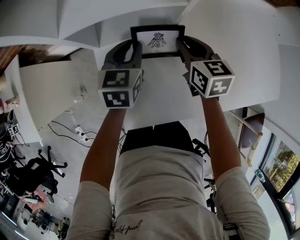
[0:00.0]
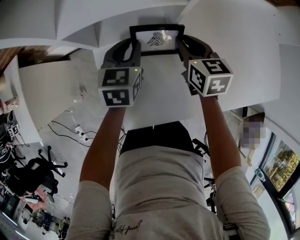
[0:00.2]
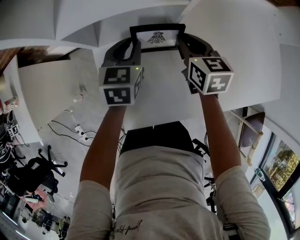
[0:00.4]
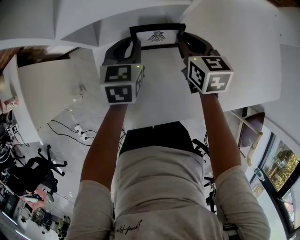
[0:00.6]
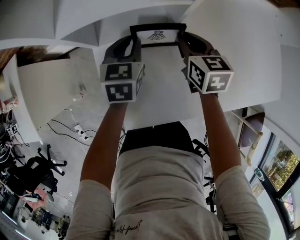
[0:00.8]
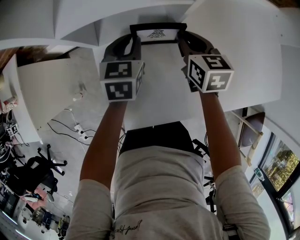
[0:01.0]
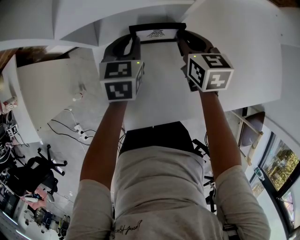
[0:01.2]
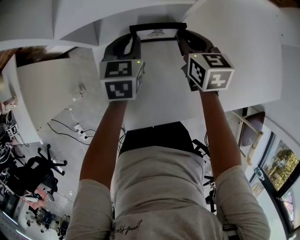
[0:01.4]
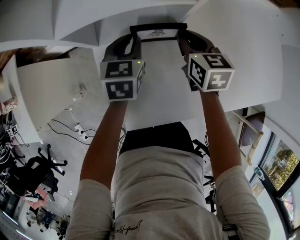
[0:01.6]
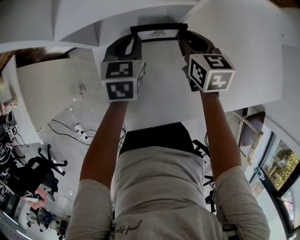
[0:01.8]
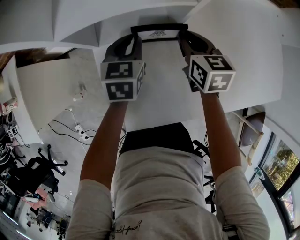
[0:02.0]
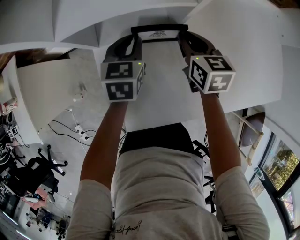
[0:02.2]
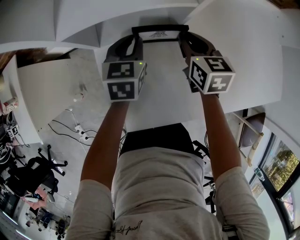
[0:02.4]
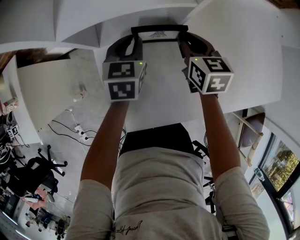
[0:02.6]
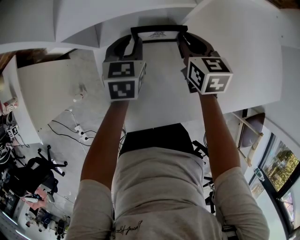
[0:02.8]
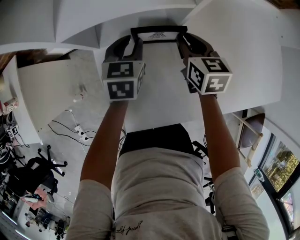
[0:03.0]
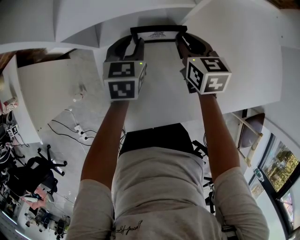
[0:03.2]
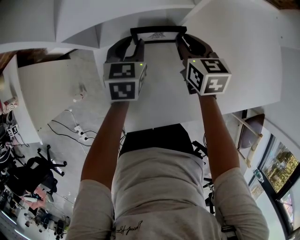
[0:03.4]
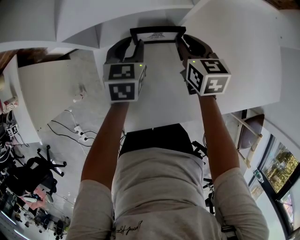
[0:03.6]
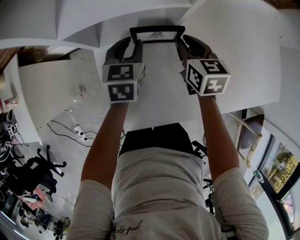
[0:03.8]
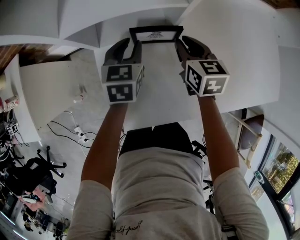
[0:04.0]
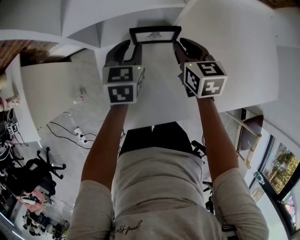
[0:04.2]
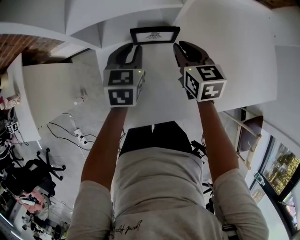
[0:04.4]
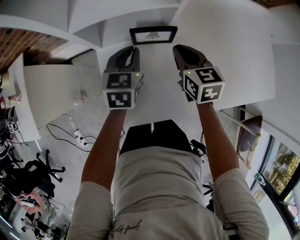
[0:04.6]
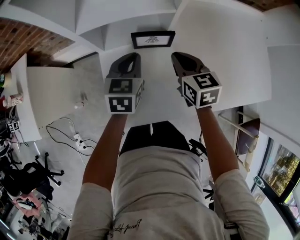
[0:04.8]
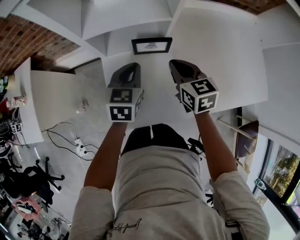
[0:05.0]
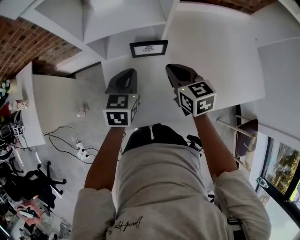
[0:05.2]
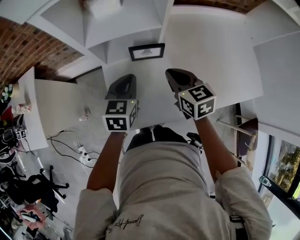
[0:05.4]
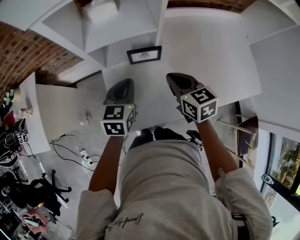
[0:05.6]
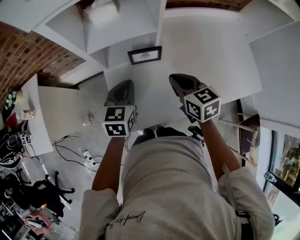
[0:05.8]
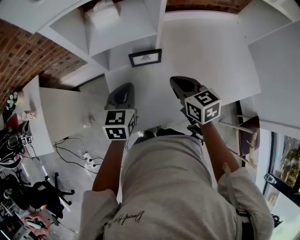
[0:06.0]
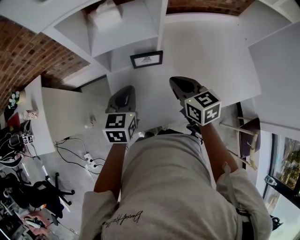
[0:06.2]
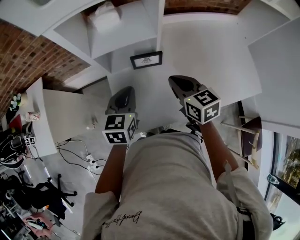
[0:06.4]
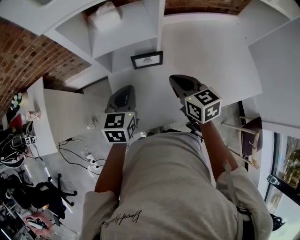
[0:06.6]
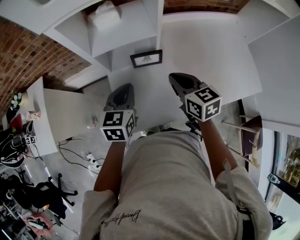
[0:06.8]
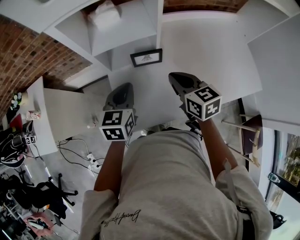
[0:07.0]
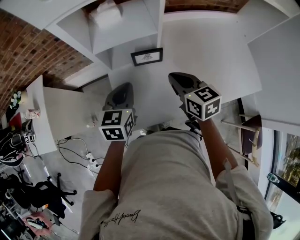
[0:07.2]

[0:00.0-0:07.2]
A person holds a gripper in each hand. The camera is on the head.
0:00.0 to 0:01.4: The grippers make only small movements.
0:01.4 to 0:02.8: The two grippers keep their place.
0:02.8 to 0:04.4: There are only small adjustments of the grippers.
0:04.4 to 0:05.8: The right gripper goes about 15 cm backward and upward. Meanwhile the left gripper travels upward and backward by approximately 15 cm.
0:05.8 to 0:07.2: The grippers stay close to where they were, moving slightly.

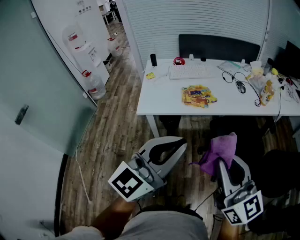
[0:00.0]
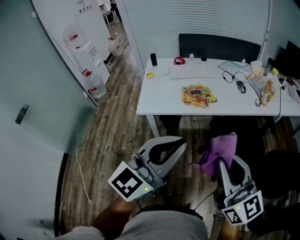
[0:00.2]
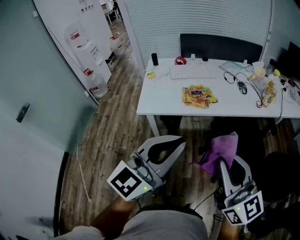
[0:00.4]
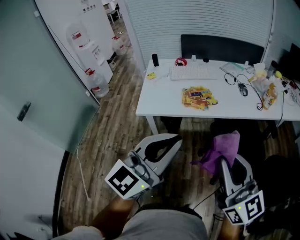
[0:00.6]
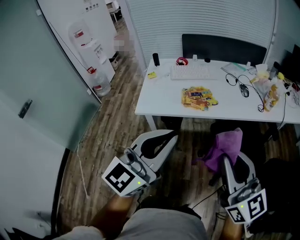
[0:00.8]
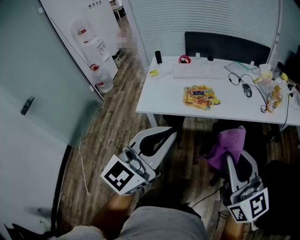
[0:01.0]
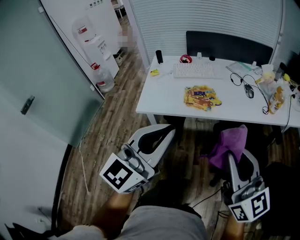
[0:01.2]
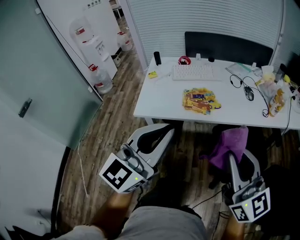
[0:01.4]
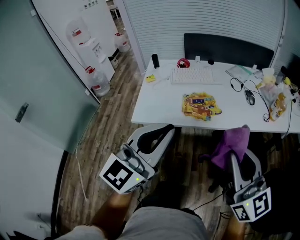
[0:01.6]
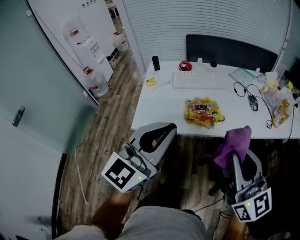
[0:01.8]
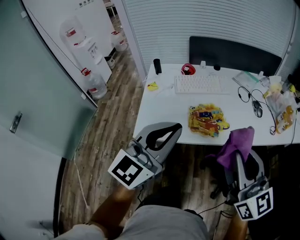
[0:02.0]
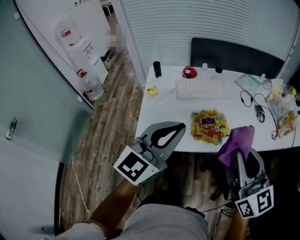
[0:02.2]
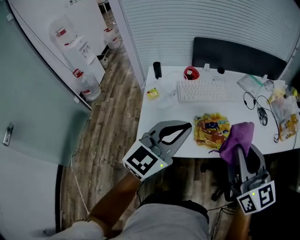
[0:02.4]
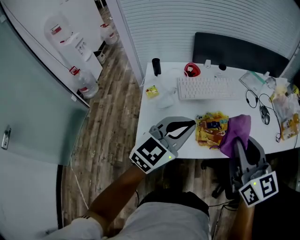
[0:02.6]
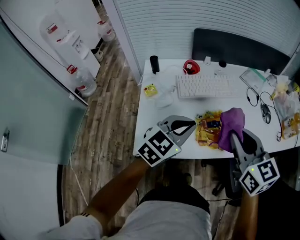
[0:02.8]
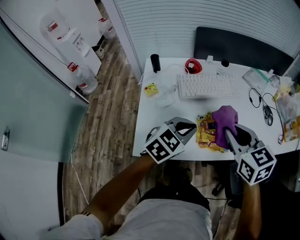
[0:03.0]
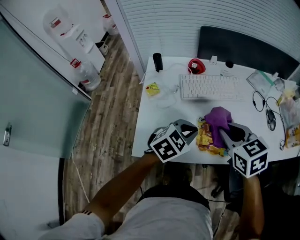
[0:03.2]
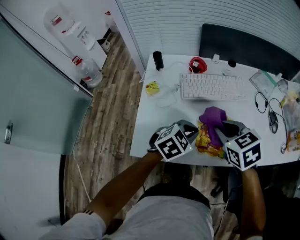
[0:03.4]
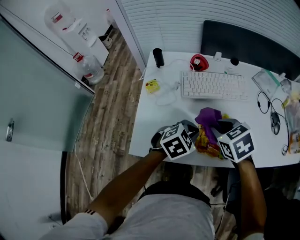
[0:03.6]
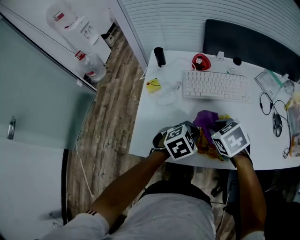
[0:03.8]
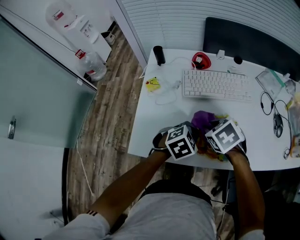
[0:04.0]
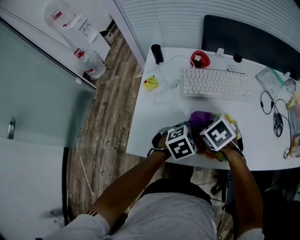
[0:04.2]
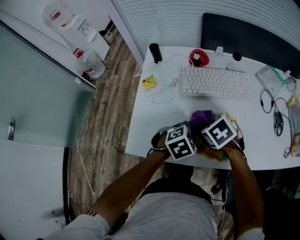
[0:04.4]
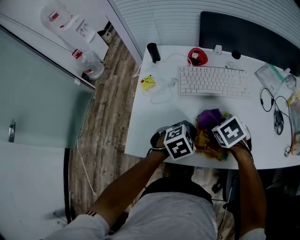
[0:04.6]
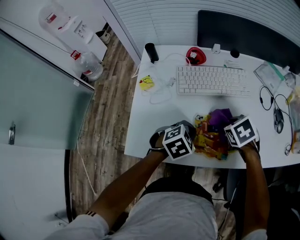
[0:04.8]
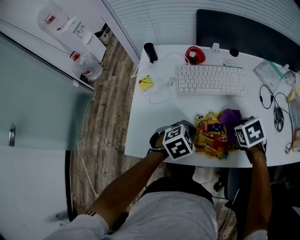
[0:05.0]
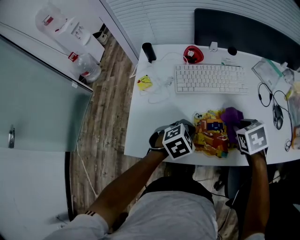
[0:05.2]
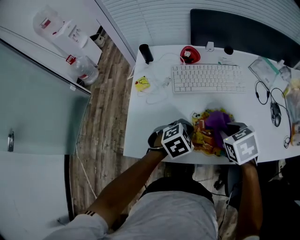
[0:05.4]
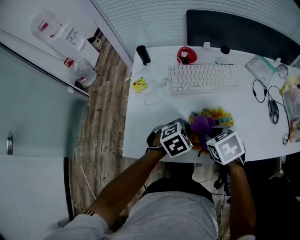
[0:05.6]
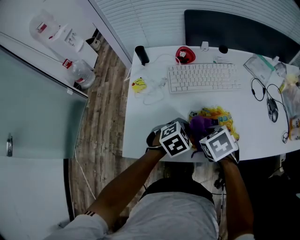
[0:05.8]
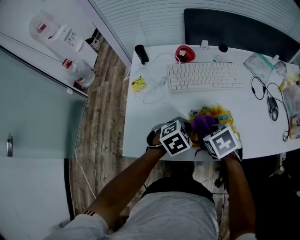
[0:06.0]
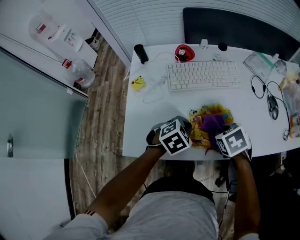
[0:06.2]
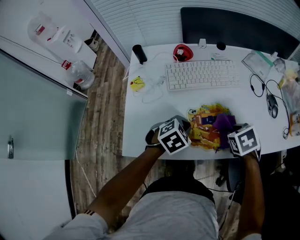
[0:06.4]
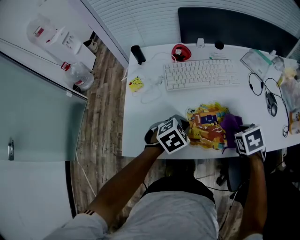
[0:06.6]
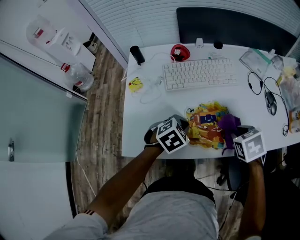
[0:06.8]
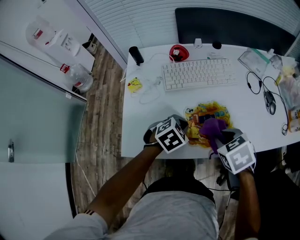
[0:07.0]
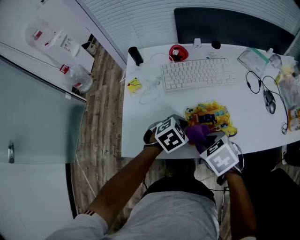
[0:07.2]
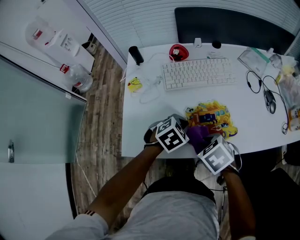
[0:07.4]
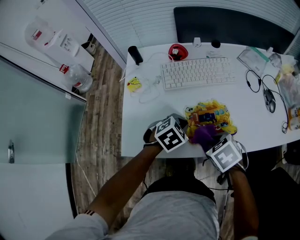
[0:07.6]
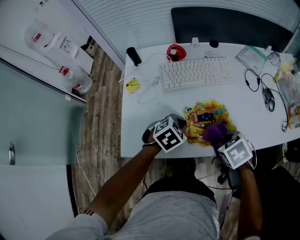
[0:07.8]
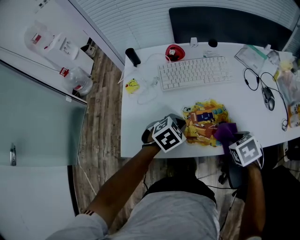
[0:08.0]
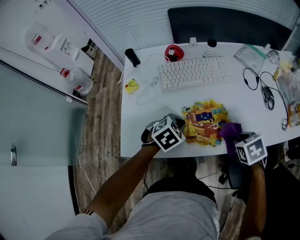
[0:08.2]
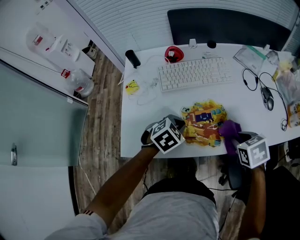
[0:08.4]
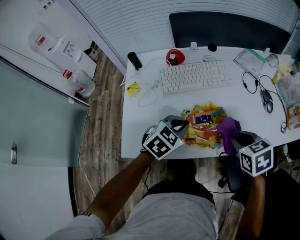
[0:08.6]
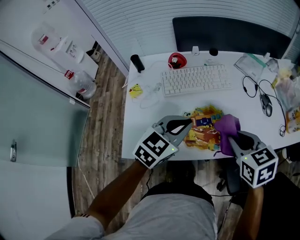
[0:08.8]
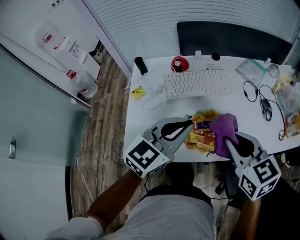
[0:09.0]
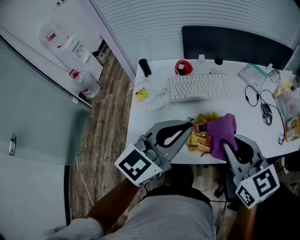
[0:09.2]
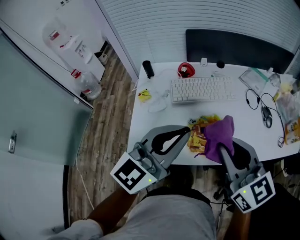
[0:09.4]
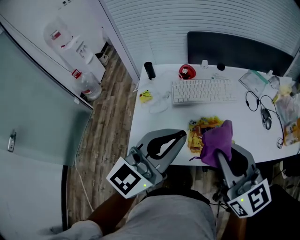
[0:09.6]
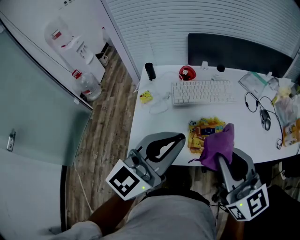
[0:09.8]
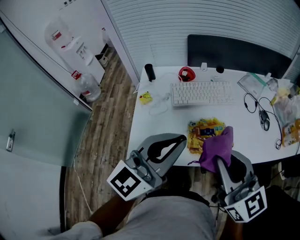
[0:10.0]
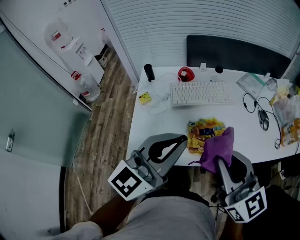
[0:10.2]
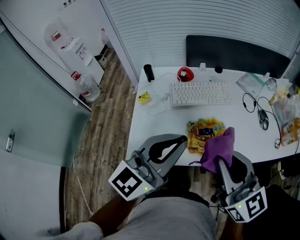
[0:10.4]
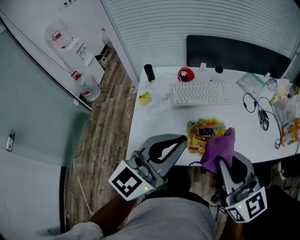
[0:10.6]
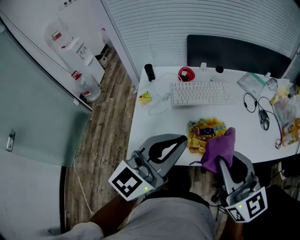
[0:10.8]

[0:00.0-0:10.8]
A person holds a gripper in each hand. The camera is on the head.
0:00.0 to 0:01.6: The two grippers go approximately 15 cm forward.
0:01.6 to 0:03.0: The right gripper is displaced forward and to the left by some 35 cm, and points its fingers approximately 40 degrees further downward. The left gripper goes about 35 cm forward and downward, and tips its fingers downward by roughly 40 degrees.
0:03.0 to 0:04.6: The left gripper shifts some 15 cm downward, and changes its angle by roughly 30 degrees; the right gripper travels downward and forward by approximately 20 cm, and tips its fingers downward by approximately 40 degrees.
0:04.6 to 0:06.2: The right gripper swings left and right, some 10 cm each way, with 2 reversals.
0:06.2 to 0:07.8: The right gripper moves left and right over roughly 15 cm, changing direction 2 times.
0:07.8 to 0:09.2: The grippers both shift upward by roughly 25 cm. The left gripper angles its fingers upward, by some 60 degrees; the right gripper points its fingers about 50 degrees further upward.
0:09.2 to 0:10.8: Both grippers move backward, some 5 cm.

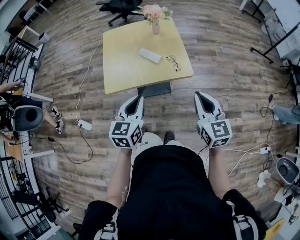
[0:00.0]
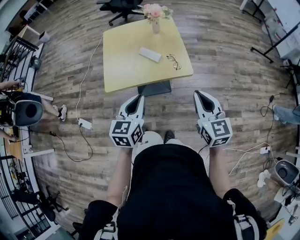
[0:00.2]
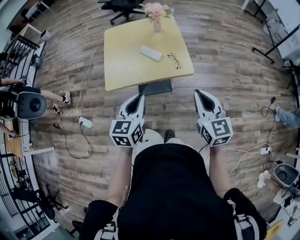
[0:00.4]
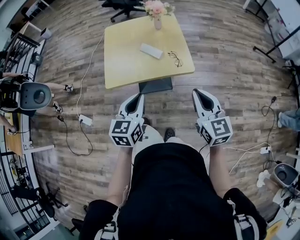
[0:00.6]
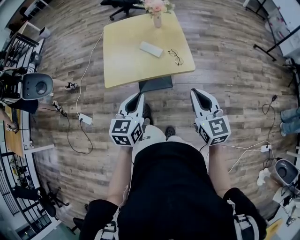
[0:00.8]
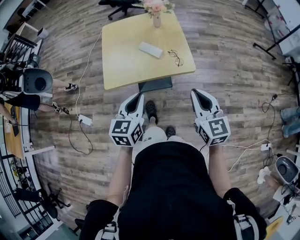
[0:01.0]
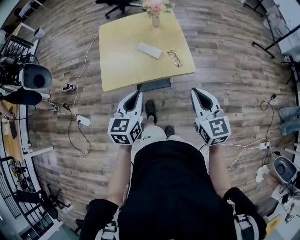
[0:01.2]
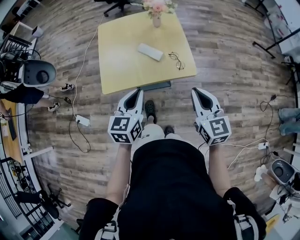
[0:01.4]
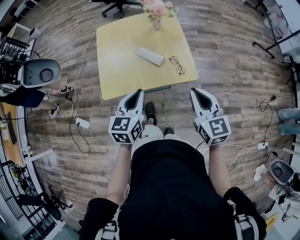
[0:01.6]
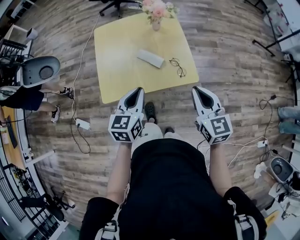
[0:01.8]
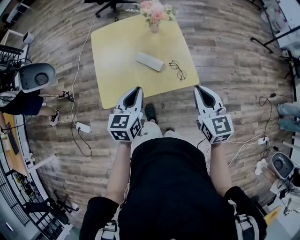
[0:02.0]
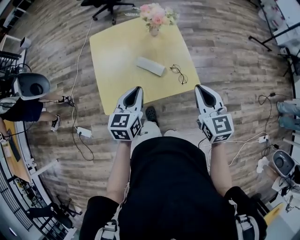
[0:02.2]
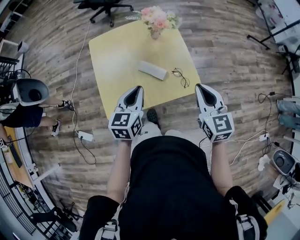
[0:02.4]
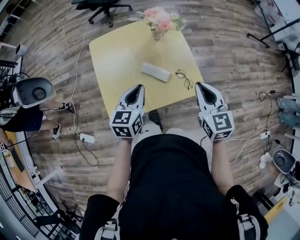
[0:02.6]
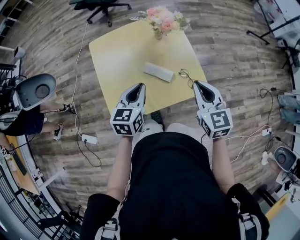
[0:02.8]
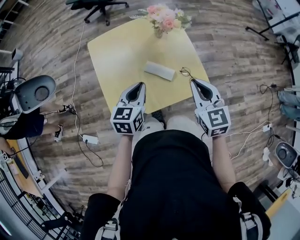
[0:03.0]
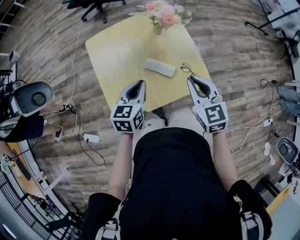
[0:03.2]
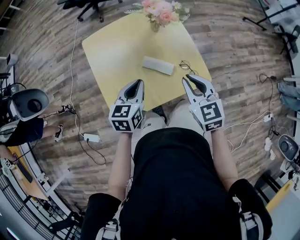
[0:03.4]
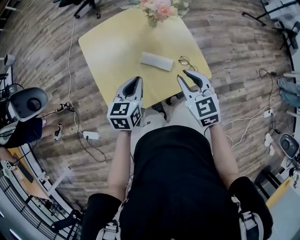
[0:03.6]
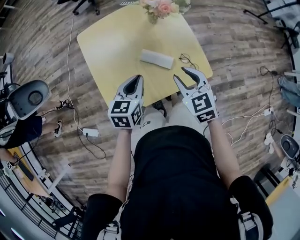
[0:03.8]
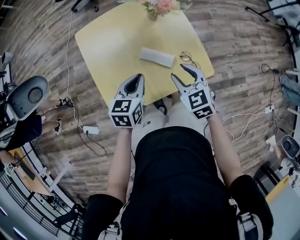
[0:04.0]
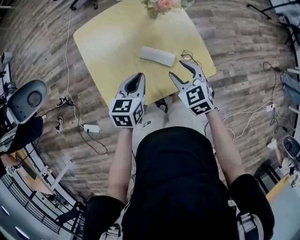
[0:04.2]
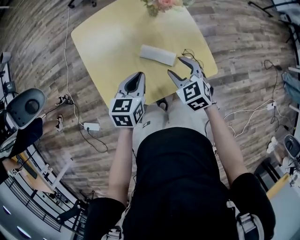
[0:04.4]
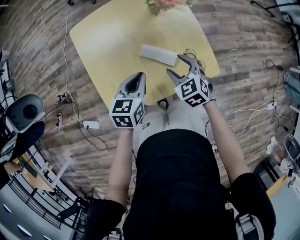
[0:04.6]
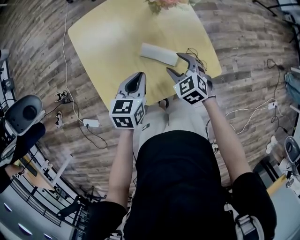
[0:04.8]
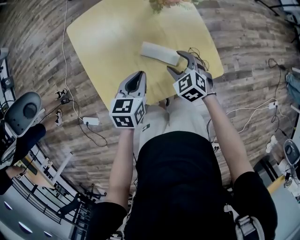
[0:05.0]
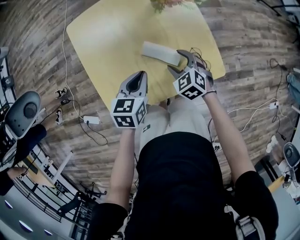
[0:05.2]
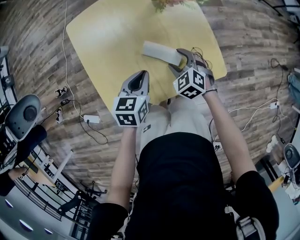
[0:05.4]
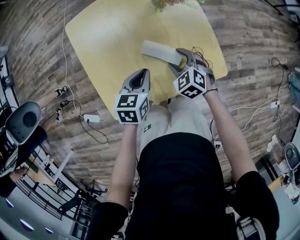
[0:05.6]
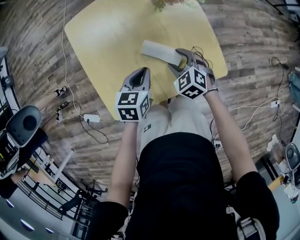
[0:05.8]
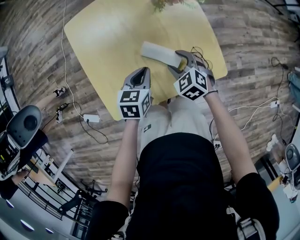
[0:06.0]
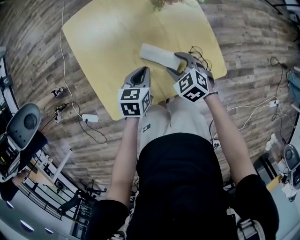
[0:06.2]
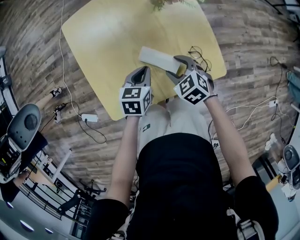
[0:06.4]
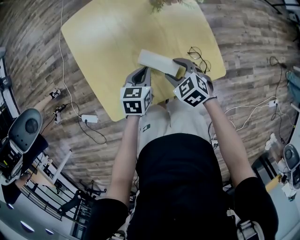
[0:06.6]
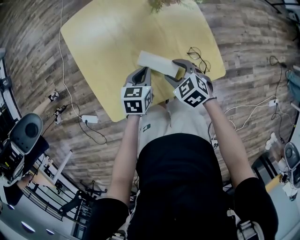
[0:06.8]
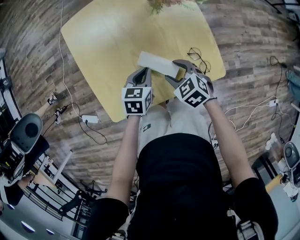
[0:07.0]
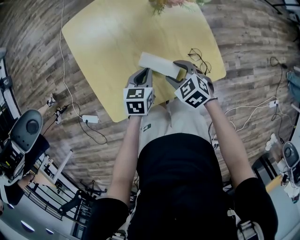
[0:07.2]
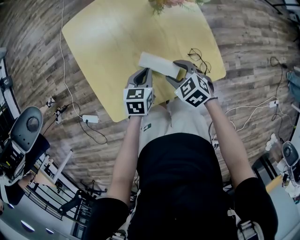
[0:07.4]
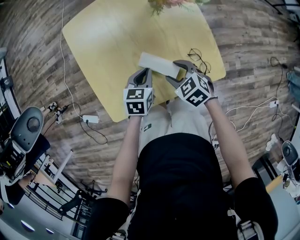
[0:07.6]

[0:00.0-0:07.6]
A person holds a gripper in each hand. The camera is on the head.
0:00.0 to 0:01.6: Both grippers travel together forward, some 10 cm.
0:01.6 to 0:03.0: The grippers both shift forward and to the left by approximately 20 cm.
0:03.0 to 0:04.6: The right gripper goes approximately 20 cm downward, rotates roughly 30 degrees, and opens, while the left gripper is displaced downward by roughly 10 cm.
0:04.6 to 0:06.0: Both grippers move downward, roughly 10 cm.
0:06.0 to 0:07.6: The grippers move only a little.
